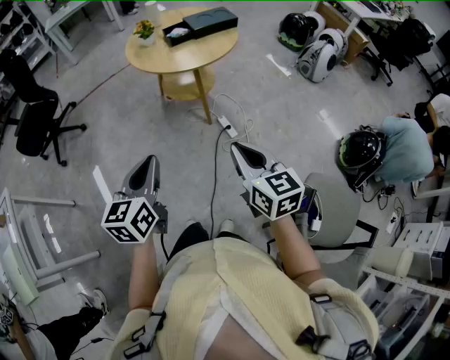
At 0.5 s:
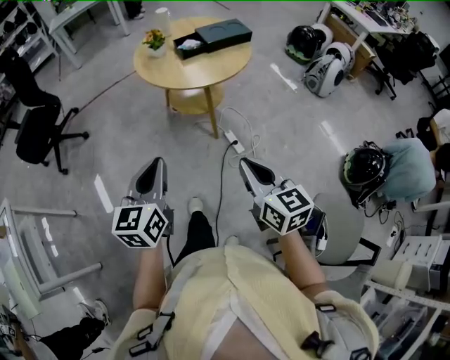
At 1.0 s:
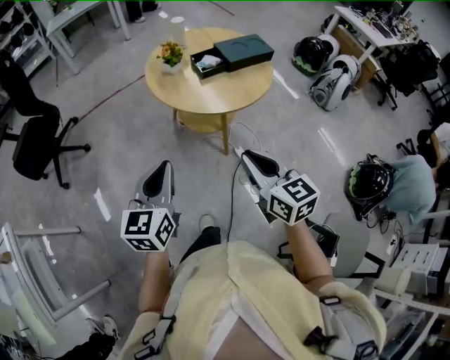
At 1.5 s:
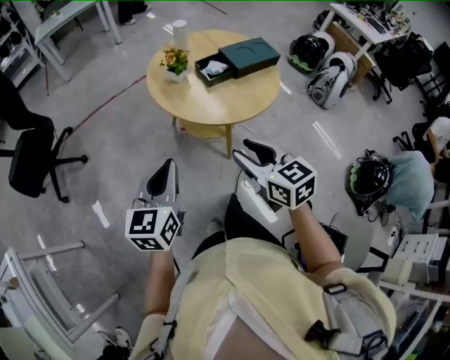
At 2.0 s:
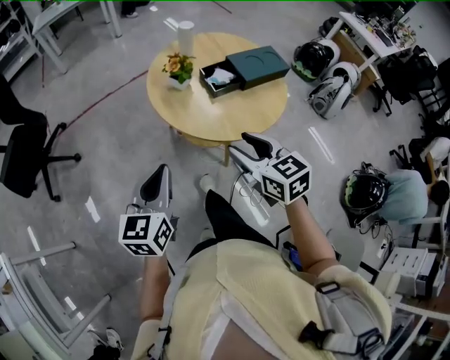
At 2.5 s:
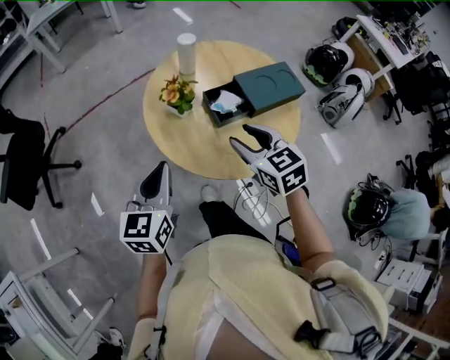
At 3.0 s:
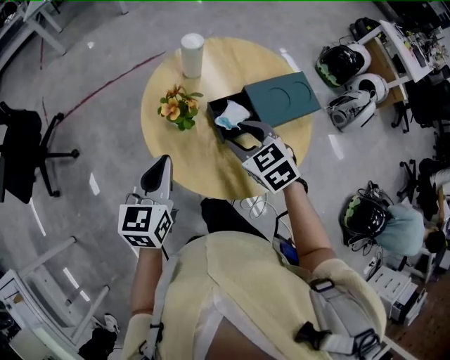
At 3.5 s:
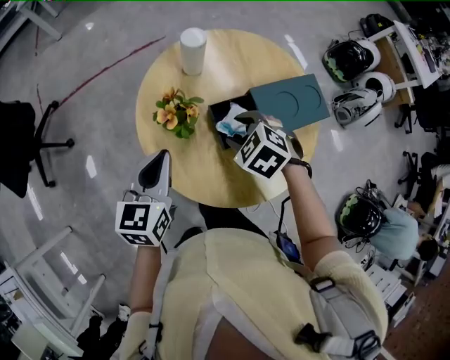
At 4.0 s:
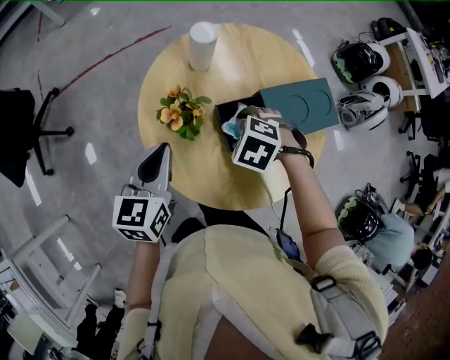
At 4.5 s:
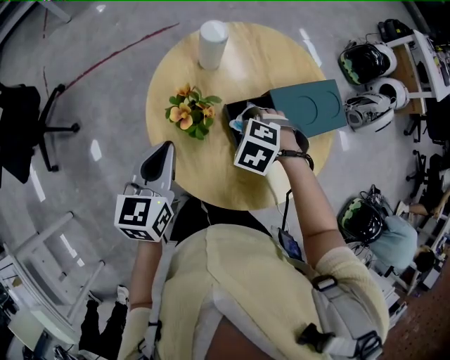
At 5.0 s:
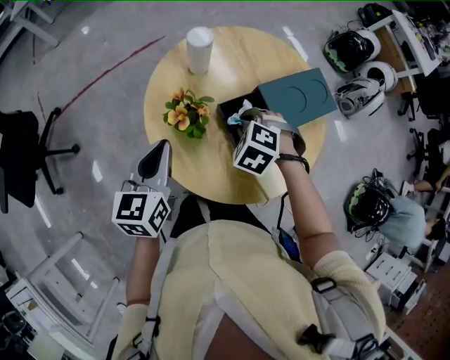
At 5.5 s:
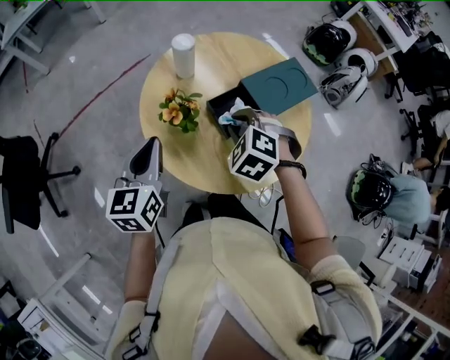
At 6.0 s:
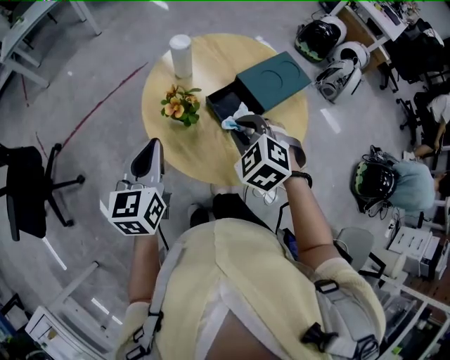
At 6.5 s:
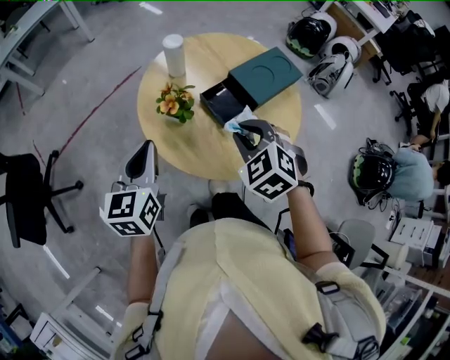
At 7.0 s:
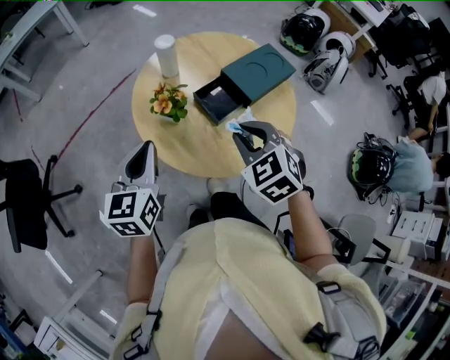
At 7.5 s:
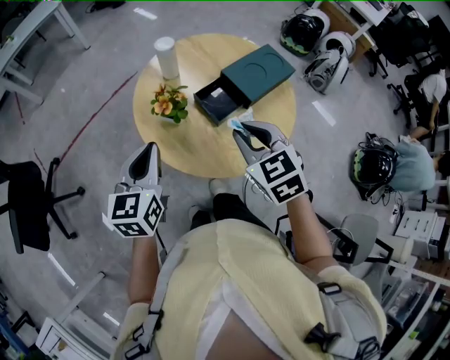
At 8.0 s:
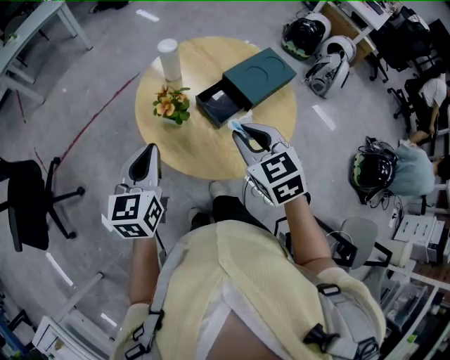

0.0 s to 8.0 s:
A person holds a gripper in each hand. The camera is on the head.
0.0 to 2.0 s: Both grippers move forward, approximately 40 cm. The right gripper opens up.
2.0 to 4.0 s: The right gripper moves approximately 35 cm, and tilts its fingers approximately 50 degrees downward. Meanwhile the left gripper ends up approximately 30 cm from where it was.
4.0 to 6.0 s: The right gripper travels upward by some 10 cm, rotates some 40 degrees, and closes its fingers. The left gripper moves upward, approximately 5 cm.
6.0 to 8.0 s: The right gripper moves upward, about 5 cm, and turns by about 30 degrees.

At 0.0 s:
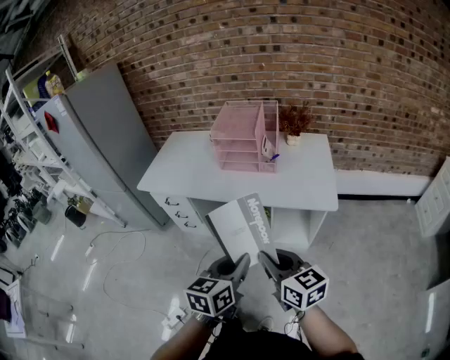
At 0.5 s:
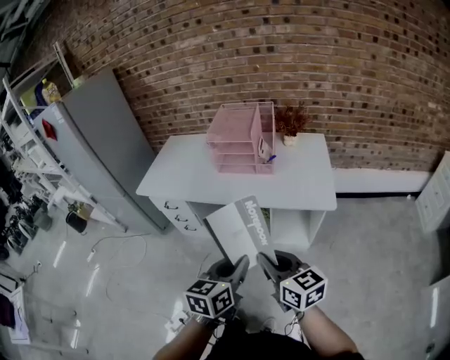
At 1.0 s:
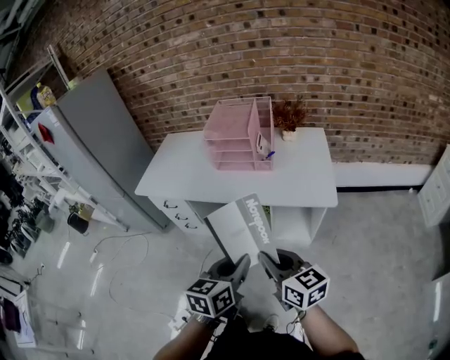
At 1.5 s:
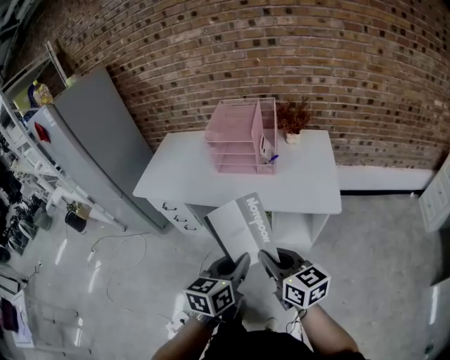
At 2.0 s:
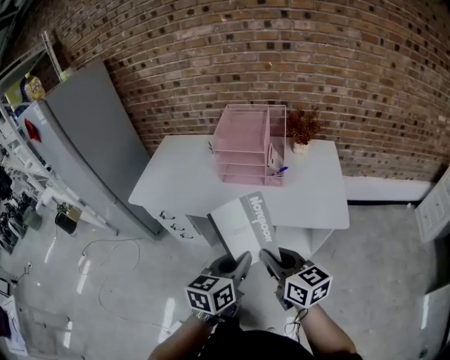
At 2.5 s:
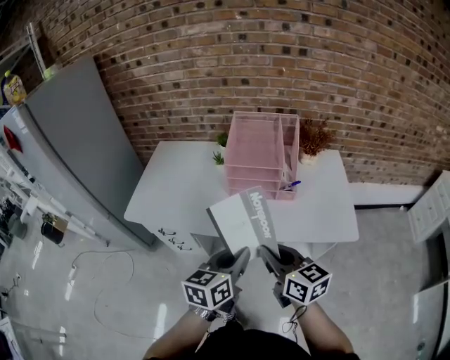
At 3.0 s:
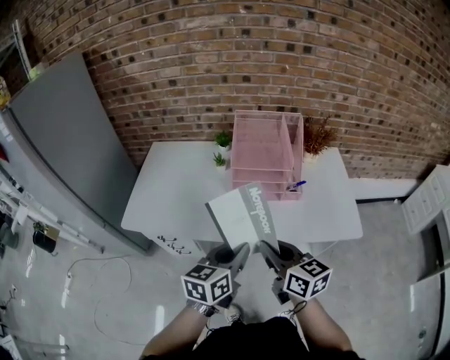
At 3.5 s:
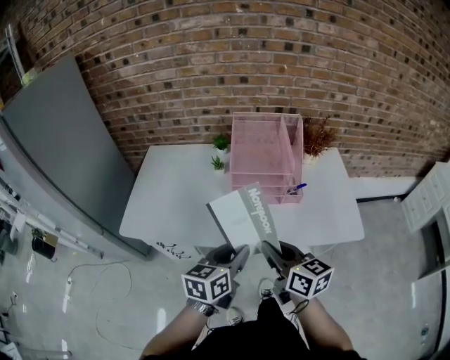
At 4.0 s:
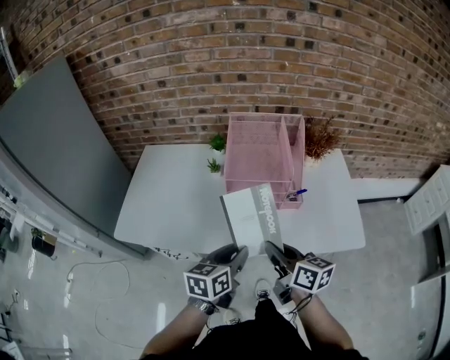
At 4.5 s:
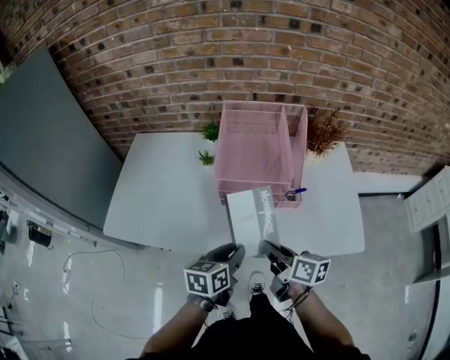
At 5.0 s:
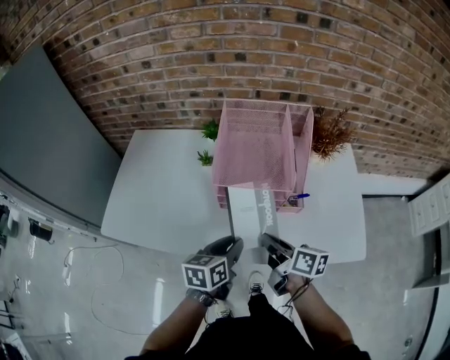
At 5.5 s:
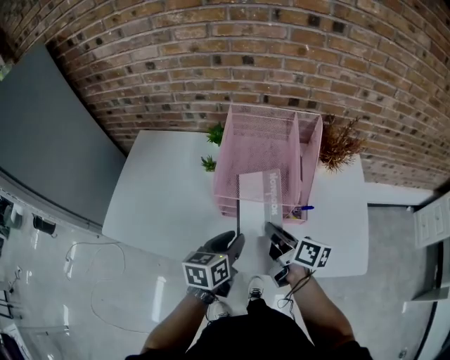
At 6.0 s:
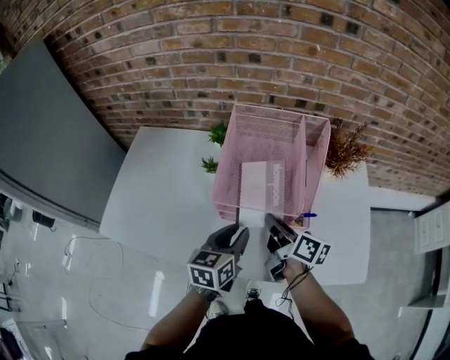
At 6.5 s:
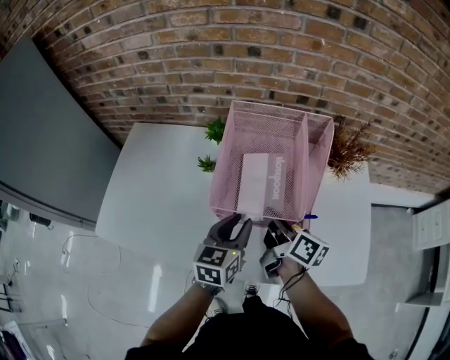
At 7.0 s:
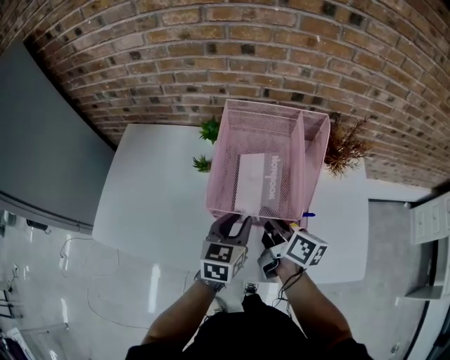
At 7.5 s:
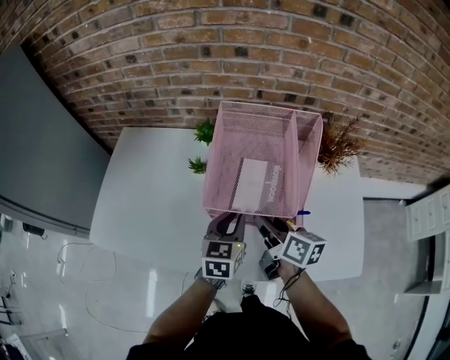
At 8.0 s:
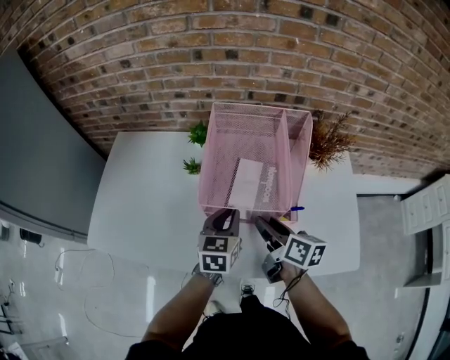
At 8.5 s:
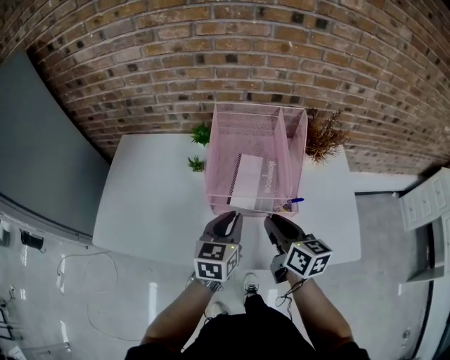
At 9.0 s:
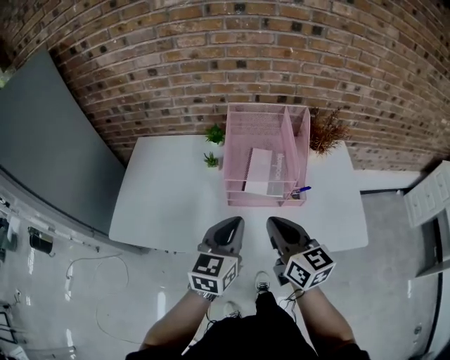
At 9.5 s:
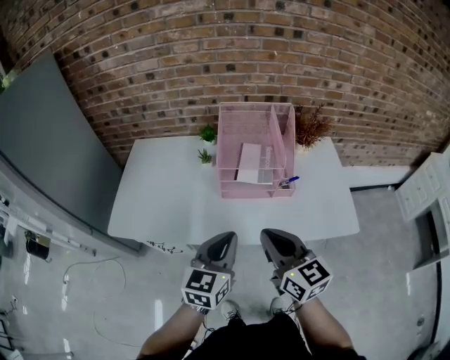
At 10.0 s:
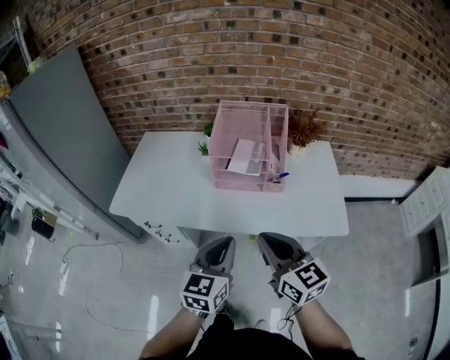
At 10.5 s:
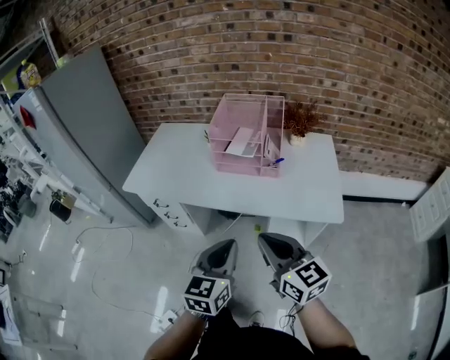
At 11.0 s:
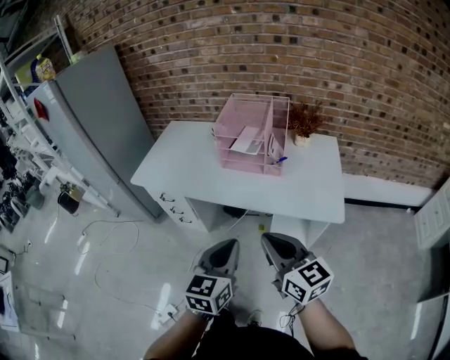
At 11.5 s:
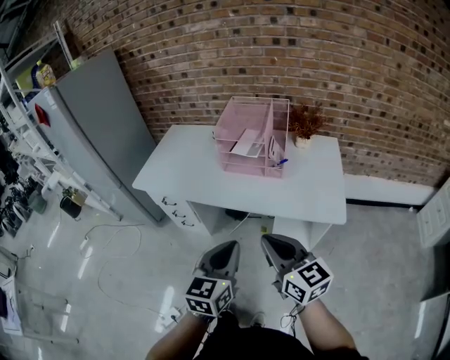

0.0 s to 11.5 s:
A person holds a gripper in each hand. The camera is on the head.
0.0 to 2.0 s: The grippers both shift forward by about 15 cm.
2.0 to 4.0 s: The two grippers go some 25 cm forward and to the left. The right gripper changes its angle by approximately 20 degrees.
4.0 to 6.0 s: Both grippers travel together forward, about 20 cm. The right gripper rotates approximately 20 degrees.
6.0 to 7.5 s: The right gripper opens its fingers. The left gripper travels forward by about 5 cm.
7.5 to 9.5 s: Both grippers move backward and upward, about 25 cm. The right gripper turns by some 40 degrees, and closes.
9.5 to 11.5 s: The grippers both shift backward and to the right by about 25 cm.

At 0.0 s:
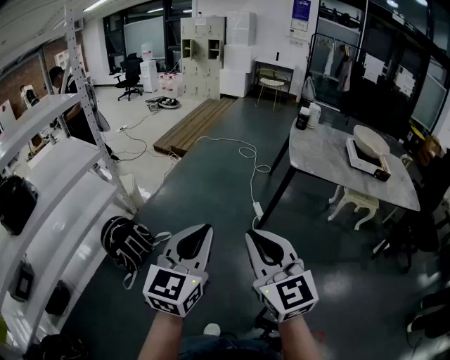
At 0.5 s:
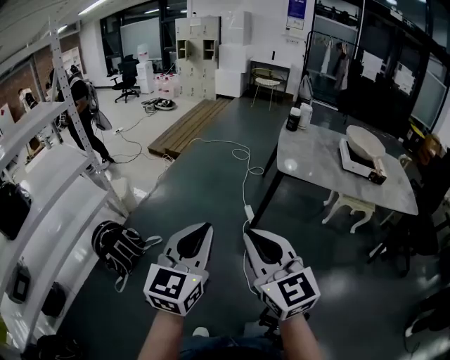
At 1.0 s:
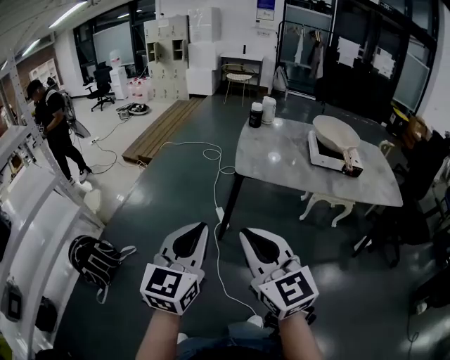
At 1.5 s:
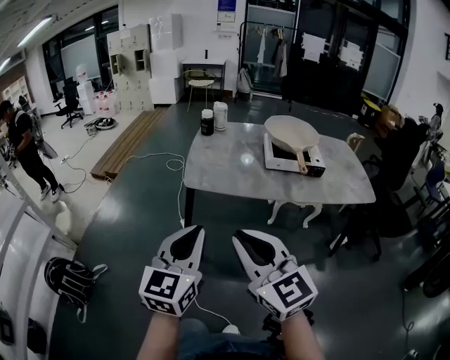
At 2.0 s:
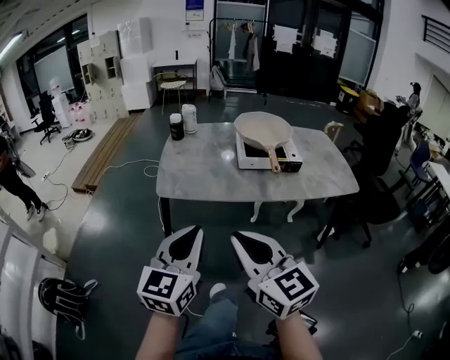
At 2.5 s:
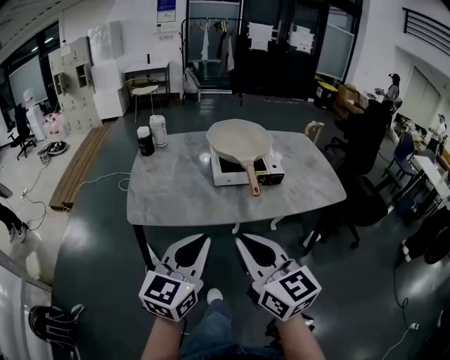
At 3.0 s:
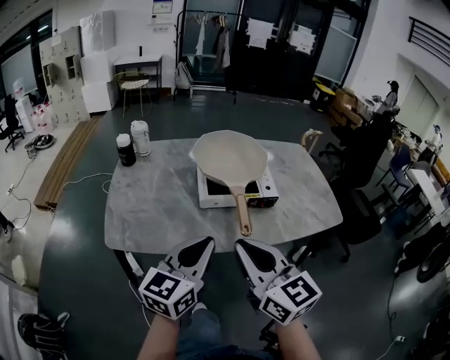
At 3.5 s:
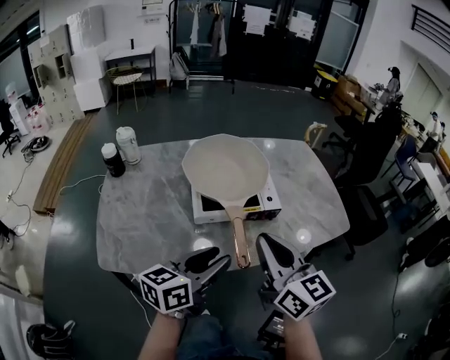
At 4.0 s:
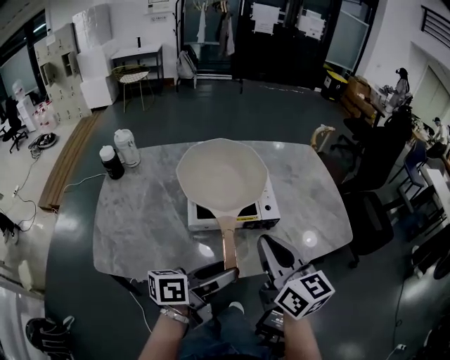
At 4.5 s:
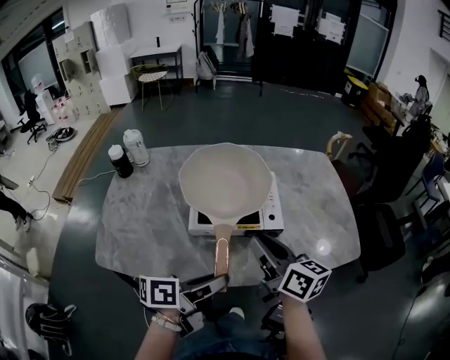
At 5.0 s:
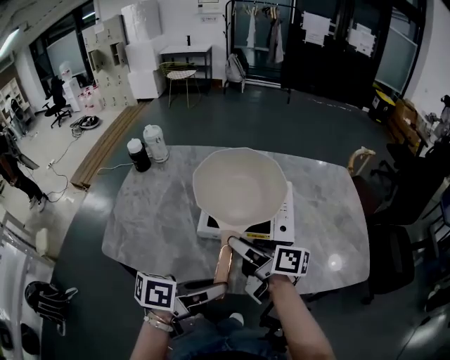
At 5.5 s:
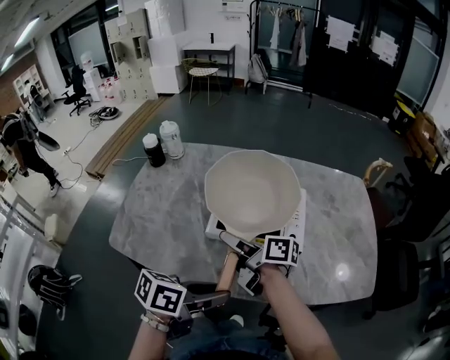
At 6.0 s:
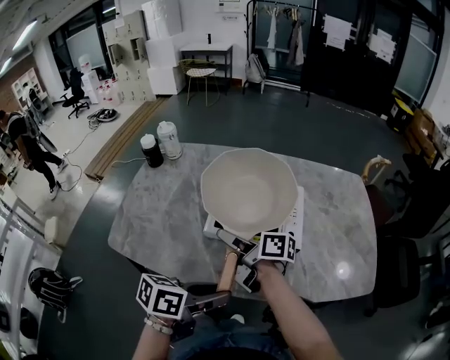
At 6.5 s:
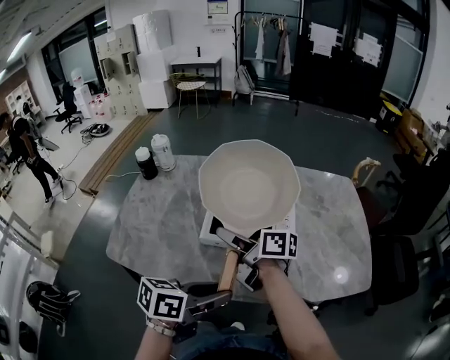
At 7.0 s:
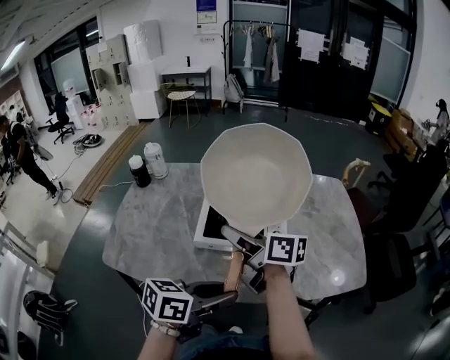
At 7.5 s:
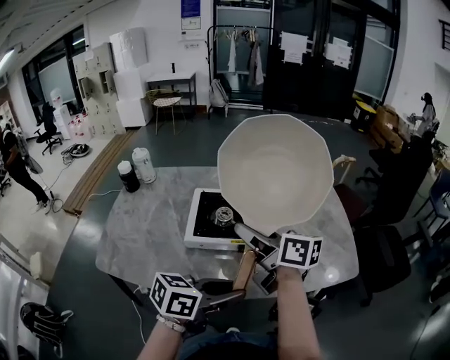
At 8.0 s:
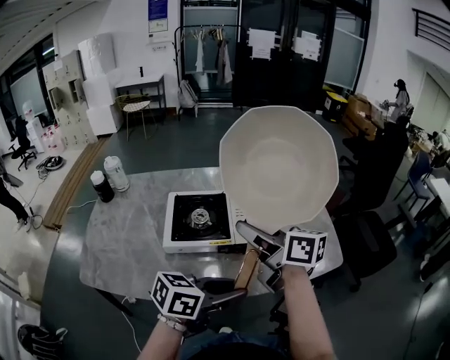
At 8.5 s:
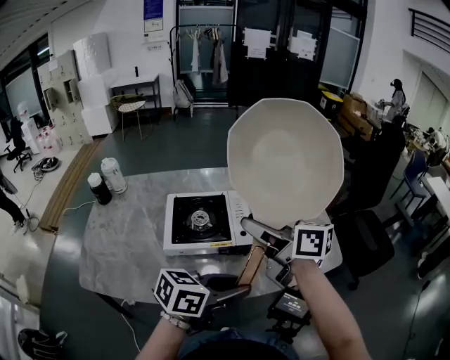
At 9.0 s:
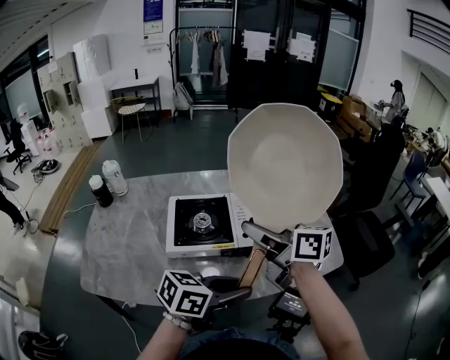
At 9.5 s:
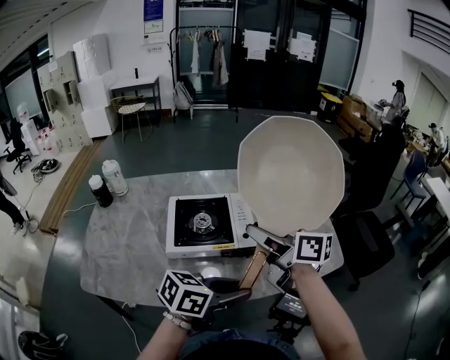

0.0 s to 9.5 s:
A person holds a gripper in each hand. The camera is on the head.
0.0 to 2.0 s: Both grippers are carried to the right, about 50 cm.
2.0 to 4.0 s: The left gripper shifts by some 40 cm, changes its angle by some 70 degrees, and opens; the right gripper ends up approximately 40 cm from where it was, and turns by roughly 20 degrees.
4.0 to 5.5 s: The right gripper travels downward, to the left and forward by approximately 20 cm, swivels roughly 70 degrees, and opens, while the left gripper swivels some 20 degrees, and closes its fingers.
5.5 to 7.5 s: The right gripper heads upward and to the right, covering approximately 15 cm, and rotates approximately 30 degrees, while the left gripper heads to the right, covering approximately 10 cm, and turns by approximately 20 degrees.
7.5 to 9.5 s: The right gripper moves to the right, approximately 5 cm.
